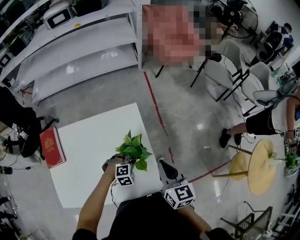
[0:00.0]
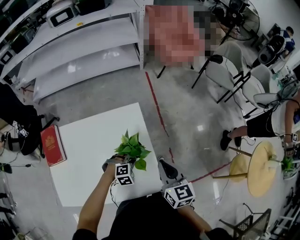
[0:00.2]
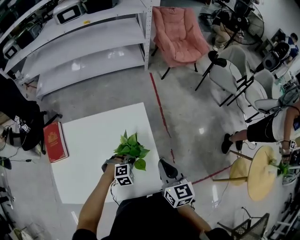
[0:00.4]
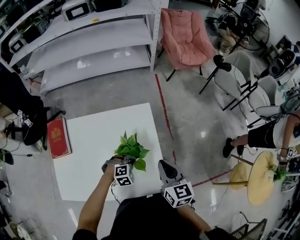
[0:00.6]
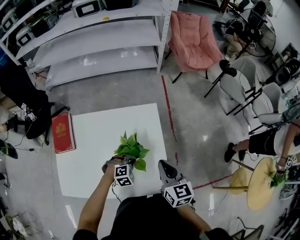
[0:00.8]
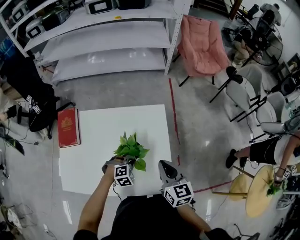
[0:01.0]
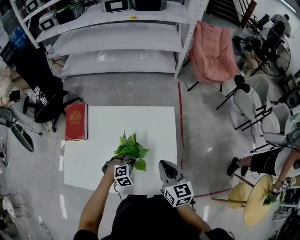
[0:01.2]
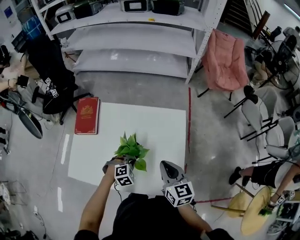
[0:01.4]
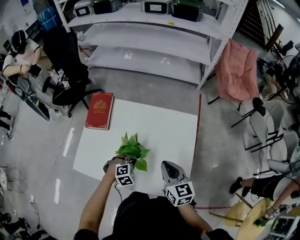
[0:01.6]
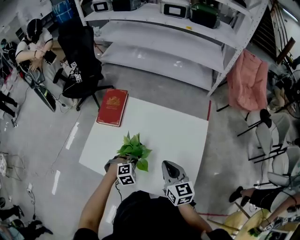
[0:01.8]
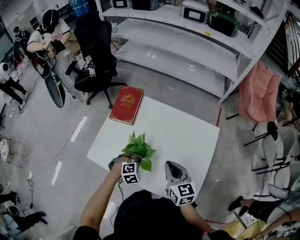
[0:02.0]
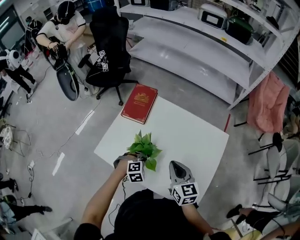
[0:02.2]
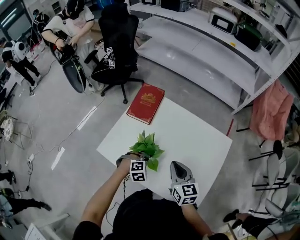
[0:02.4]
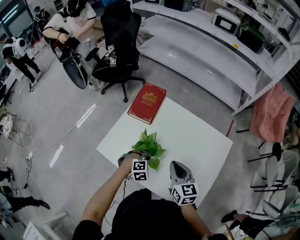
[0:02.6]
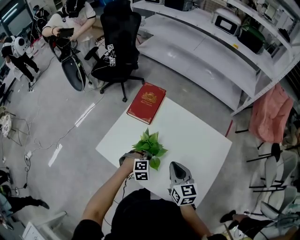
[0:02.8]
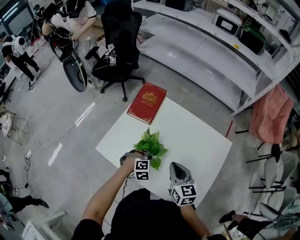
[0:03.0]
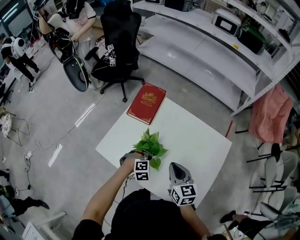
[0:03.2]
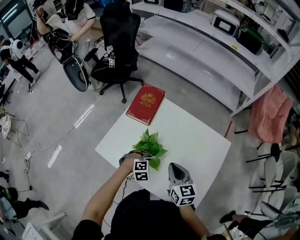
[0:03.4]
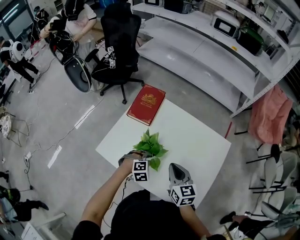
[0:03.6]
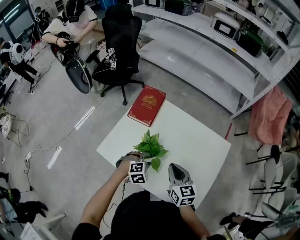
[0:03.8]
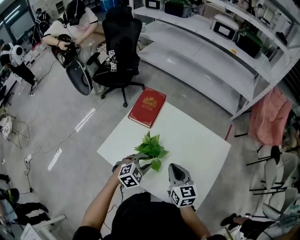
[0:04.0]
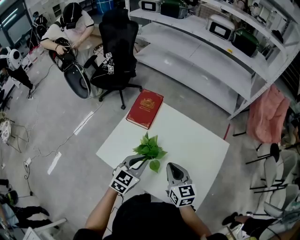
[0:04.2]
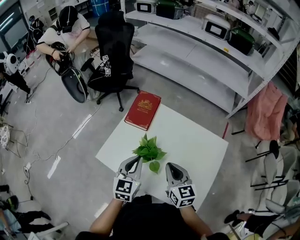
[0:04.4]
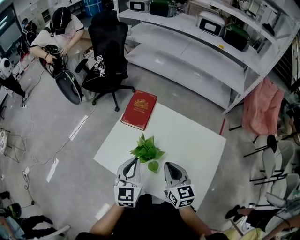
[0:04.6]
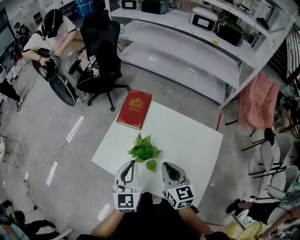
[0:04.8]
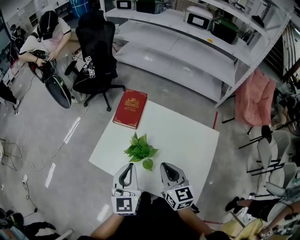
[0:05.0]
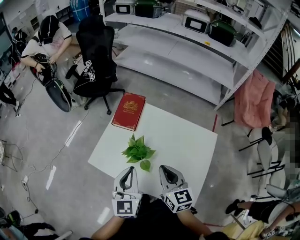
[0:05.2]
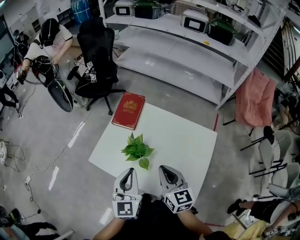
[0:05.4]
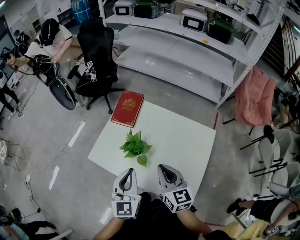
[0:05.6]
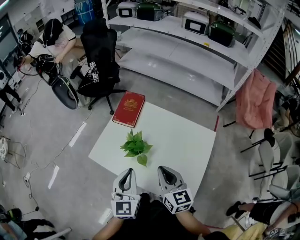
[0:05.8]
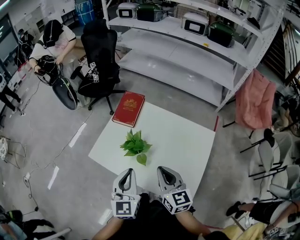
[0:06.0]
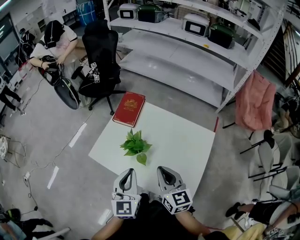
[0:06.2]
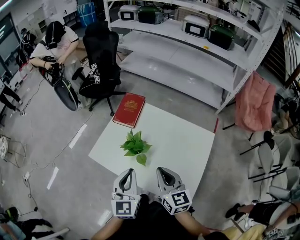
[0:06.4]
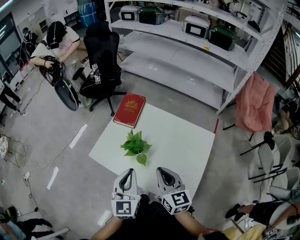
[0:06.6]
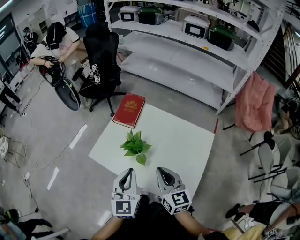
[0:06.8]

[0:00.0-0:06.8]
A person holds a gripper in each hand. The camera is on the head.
0:00.0 to 0:01.4: The right gripper moves about 20 cm, and rotates approximately 20 degrees, while the left gripper shifts by about 20 cm, and turns by roughly 30 degrees.
0:01.4 to 0:02.8: Both grippers move to the left, about 20 cm. The right gripper rotates roughly 20 degrees.
0:02.8 to 0:04.0: The left gripper goes approximately 10 cm upward, turns by about 30 degrees, and opens up.
0:04.0 to 0:05.4: The left gripper is displaced upward by about 20 cm, angles its fingers upward, by roughly 40 degrees, and closes its fingers. Meanwhile the right gripper shifts roughly 10 cm upward.
0:05.4 to 0:06.8: The grippers make only small movements.

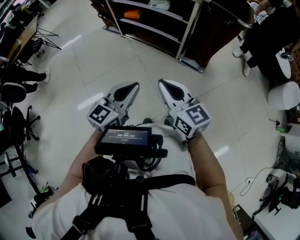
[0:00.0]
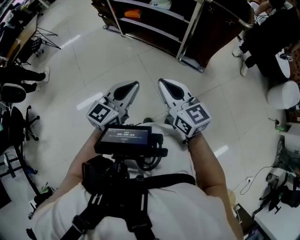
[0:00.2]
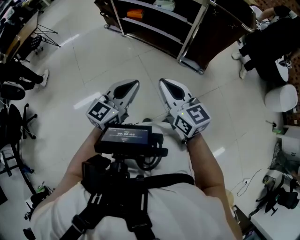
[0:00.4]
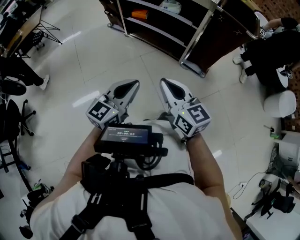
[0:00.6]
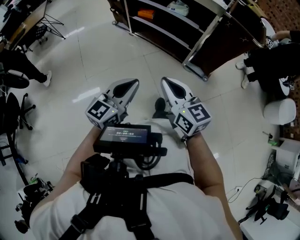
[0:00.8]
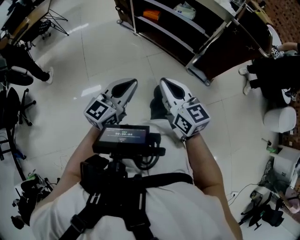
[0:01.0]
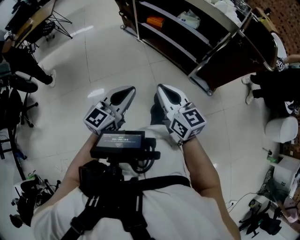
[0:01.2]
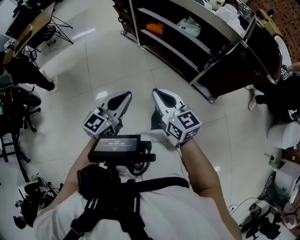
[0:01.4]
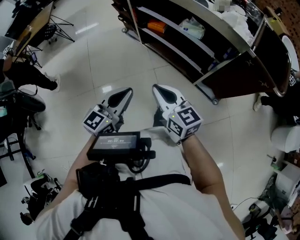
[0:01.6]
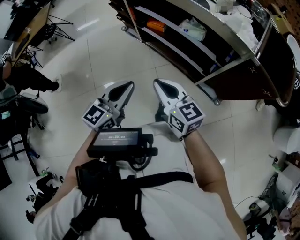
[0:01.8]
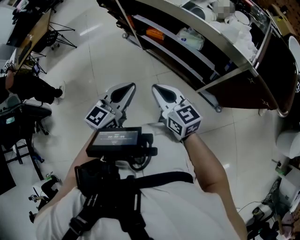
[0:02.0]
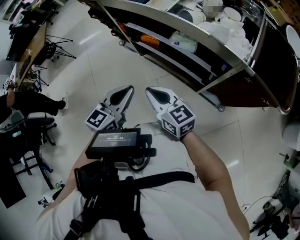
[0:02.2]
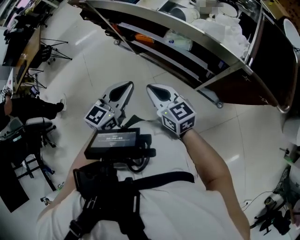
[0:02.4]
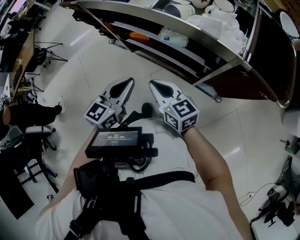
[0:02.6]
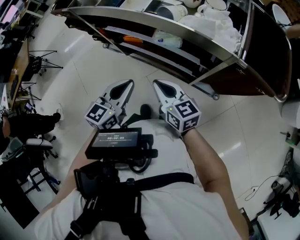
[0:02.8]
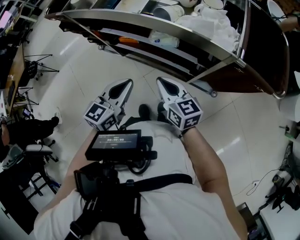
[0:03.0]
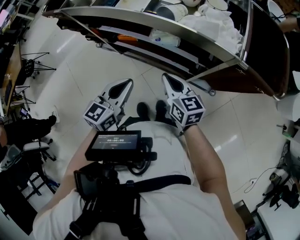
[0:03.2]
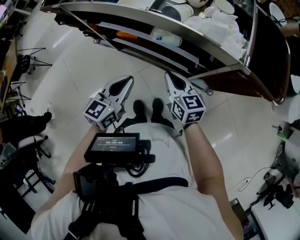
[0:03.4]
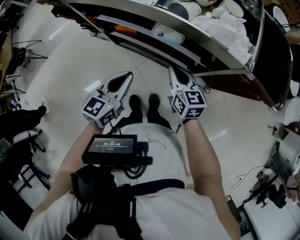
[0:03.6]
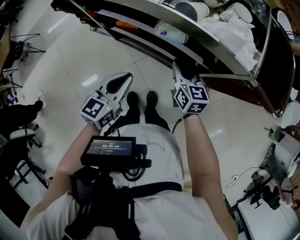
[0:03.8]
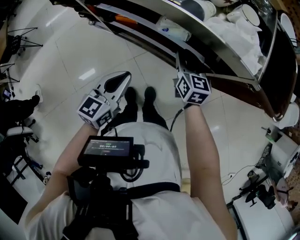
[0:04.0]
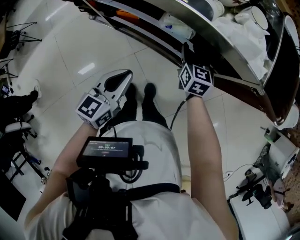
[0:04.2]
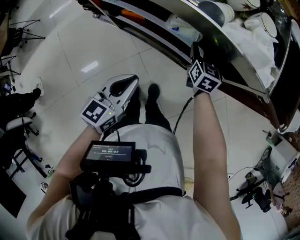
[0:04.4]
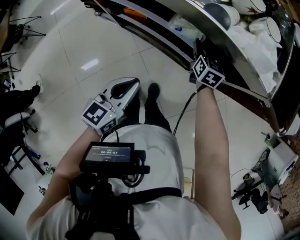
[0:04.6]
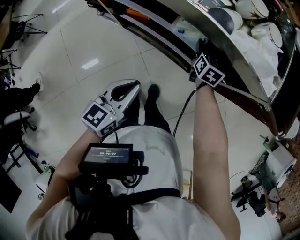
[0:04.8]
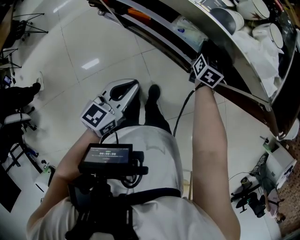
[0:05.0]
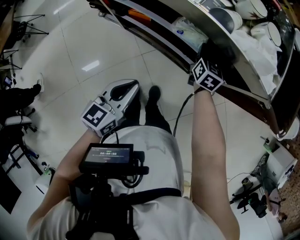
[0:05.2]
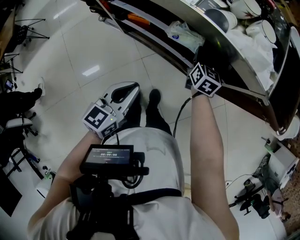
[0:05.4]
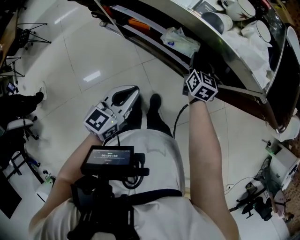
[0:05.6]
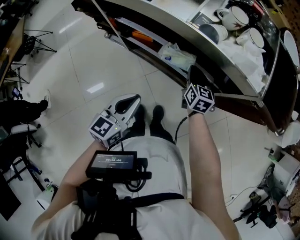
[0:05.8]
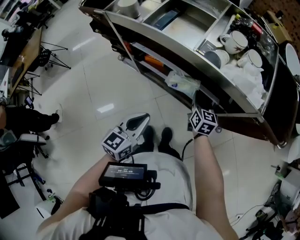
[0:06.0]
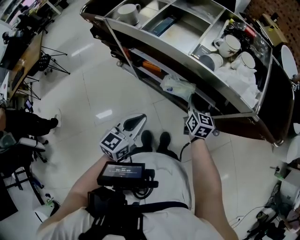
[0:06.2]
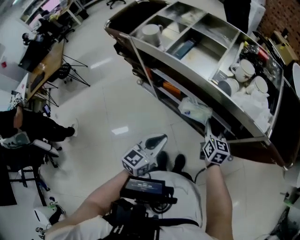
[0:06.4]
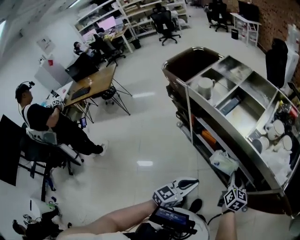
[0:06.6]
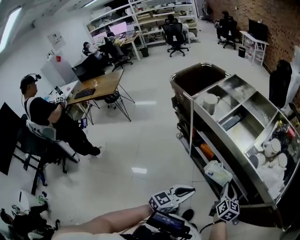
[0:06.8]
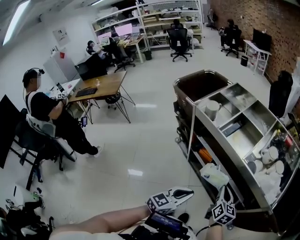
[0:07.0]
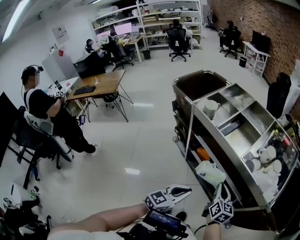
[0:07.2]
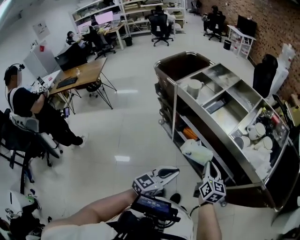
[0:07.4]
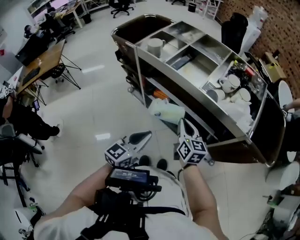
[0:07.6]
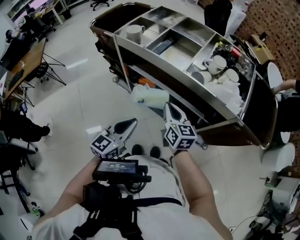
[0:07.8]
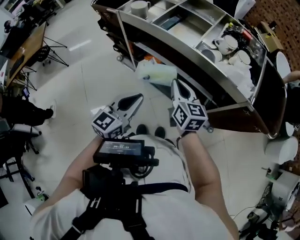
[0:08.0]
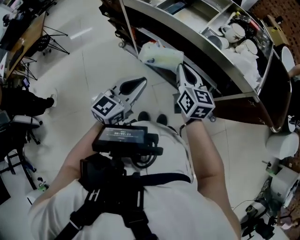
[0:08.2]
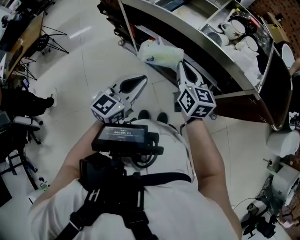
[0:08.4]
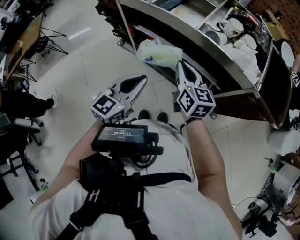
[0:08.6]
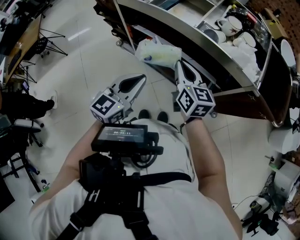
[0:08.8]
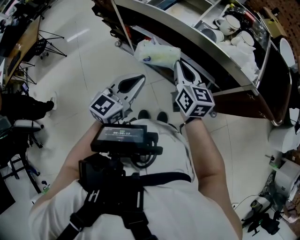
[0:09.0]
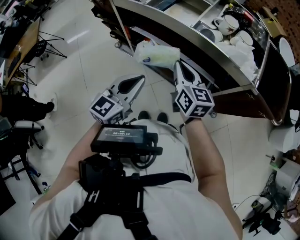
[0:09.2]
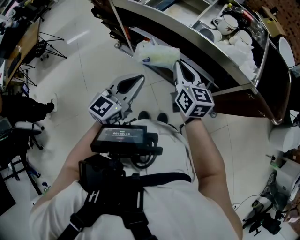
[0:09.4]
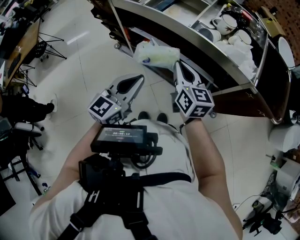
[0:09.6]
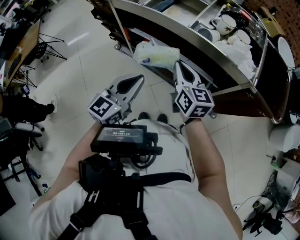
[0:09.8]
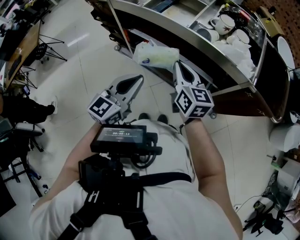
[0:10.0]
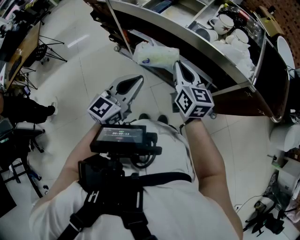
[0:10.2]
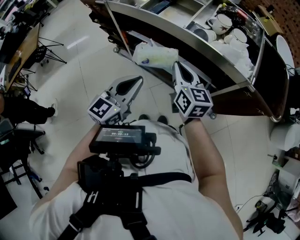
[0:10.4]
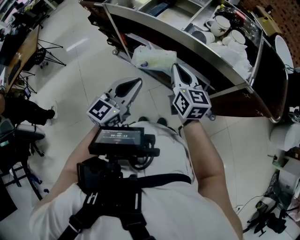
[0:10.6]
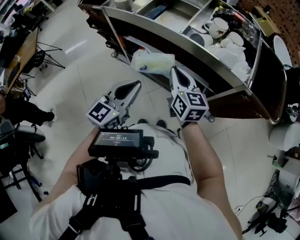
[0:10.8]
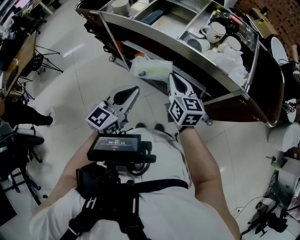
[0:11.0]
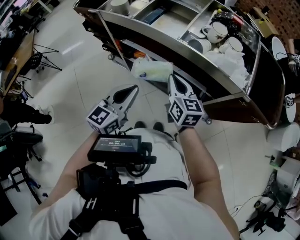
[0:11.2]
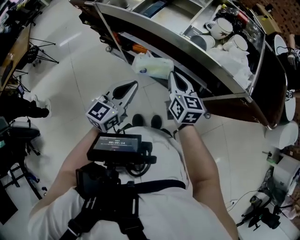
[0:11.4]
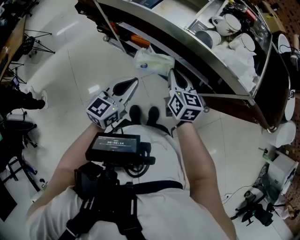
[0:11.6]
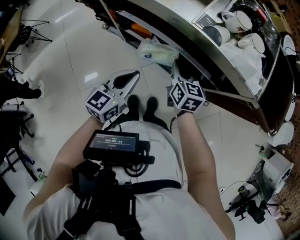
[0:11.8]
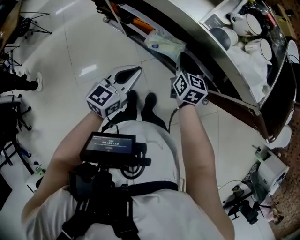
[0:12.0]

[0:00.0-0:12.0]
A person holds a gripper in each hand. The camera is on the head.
0:00.0 to 0:01.6: Both grippers travel together forward and to the left, about 25 cm.
0:01.6 to 0:03.0: Both grippers move forward and to the right, roughly 25 cm. The right gripper changes its angle by approximately 20 degrees.
0:03.0 to 0:04.4: The left gripper is displaced downward by some 5 cm. The right gripper is displaced forward and downward by approximately 20 cm, changes its angle by about 30 degrees, and opens up.
0:04.4 to 0:06.0: The right gripper goes some 5 cm backward, and closes its fingers. The left gripper changes place by some 5 cm.
0:06.0 to 0:07.6: The left gripper goes approximately 10 cm upward; the right gripper travels upward, to the left and backward by approximately 20 cm.
0:07.6 to 0:10.4: There are only small adjustments of the grippers.
0:10.4 to 0:12.0: The two grippers go some 15 cm downward and forward.

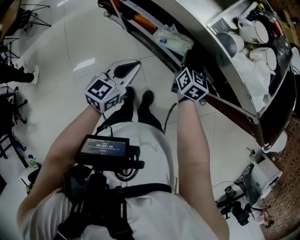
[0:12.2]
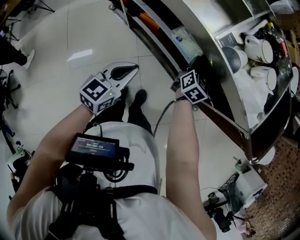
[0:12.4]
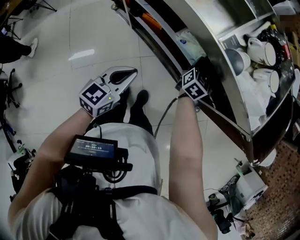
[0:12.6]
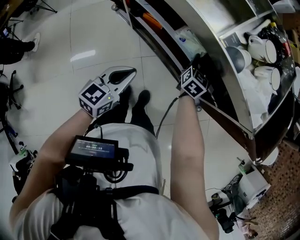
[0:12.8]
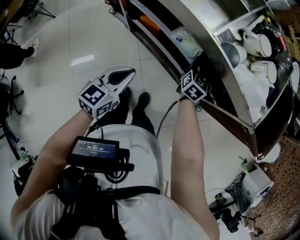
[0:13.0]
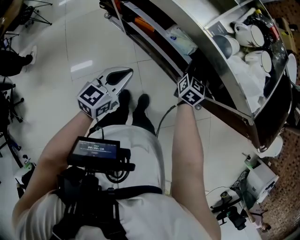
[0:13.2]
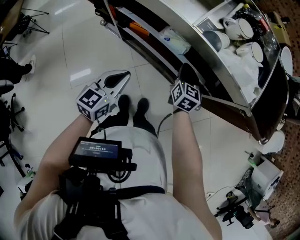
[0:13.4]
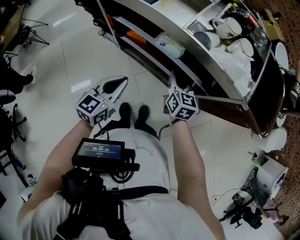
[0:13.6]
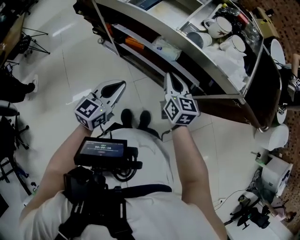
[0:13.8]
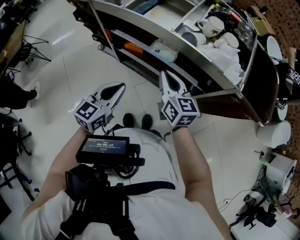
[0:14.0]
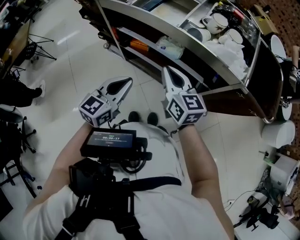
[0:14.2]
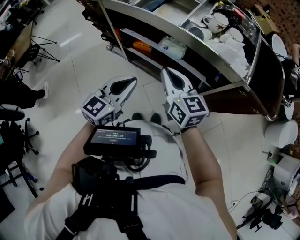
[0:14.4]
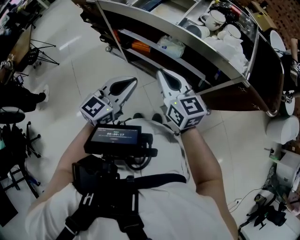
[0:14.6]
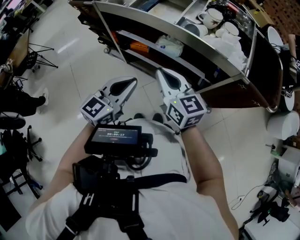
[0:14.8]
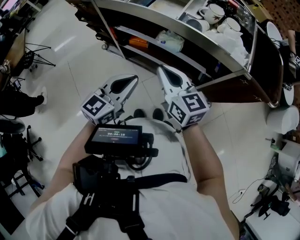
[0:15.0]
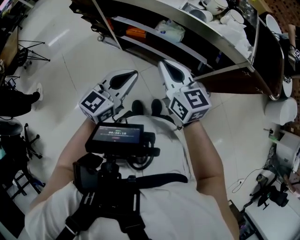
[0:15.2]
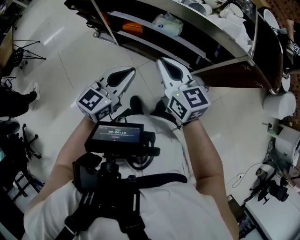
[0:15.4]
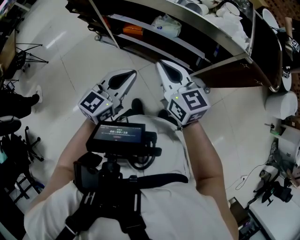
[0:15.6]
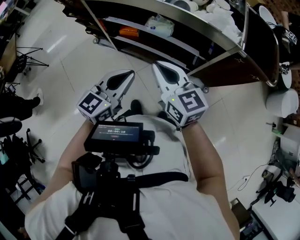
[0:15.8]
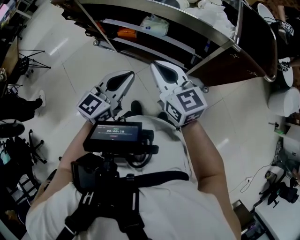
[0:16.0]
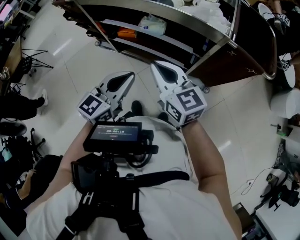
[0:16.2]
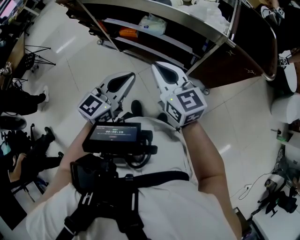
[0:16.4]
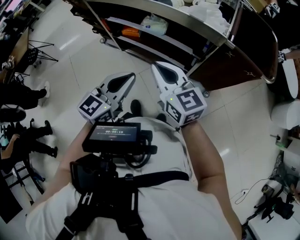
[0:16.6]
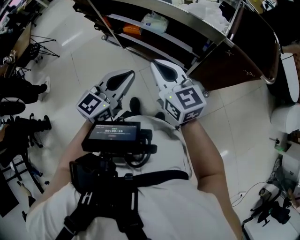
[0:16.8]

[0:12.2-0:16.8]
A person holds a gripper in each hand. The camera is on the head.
0:12.2 to 0:13.8: The left gripper travels upward and backward by roughly 10 cm. Meanwhile the right gripper goes roughly 15 cm backward and upward, and opens and closes again.
0:13.8 to 0:15.2: The right gripper is displaced upward, backward and to the left by about 15 cm. Meanwhile the left gripper travels upward by about 5 cm.
0:15.2 to 0:16.8: The two grippers go approximately 15 cm to the right and backward.
